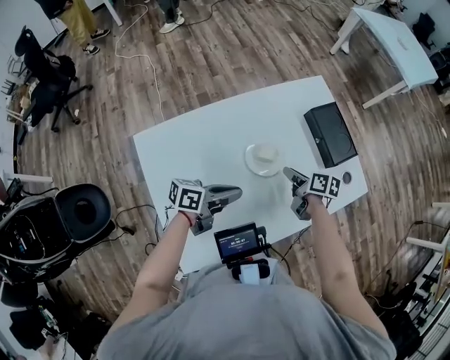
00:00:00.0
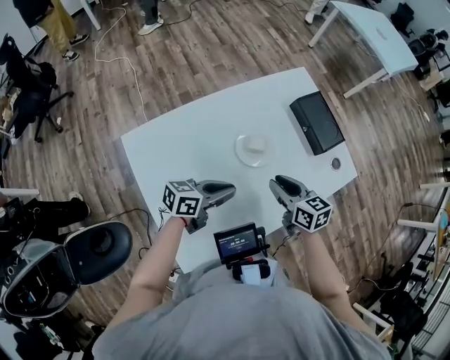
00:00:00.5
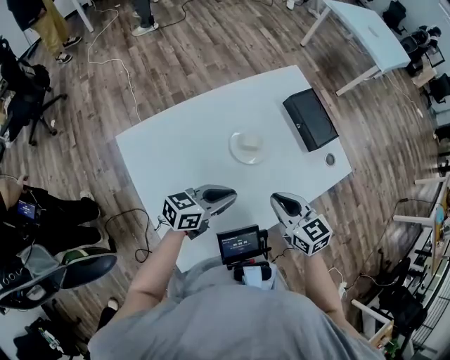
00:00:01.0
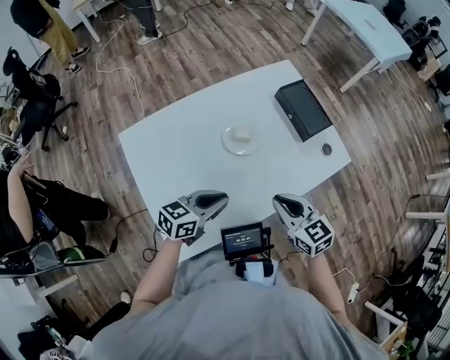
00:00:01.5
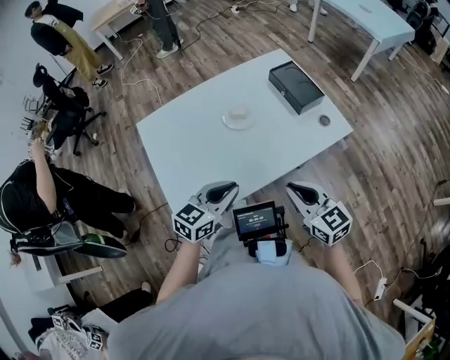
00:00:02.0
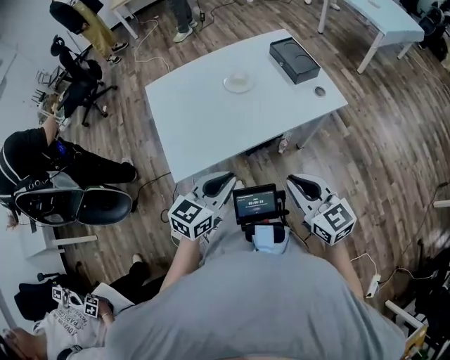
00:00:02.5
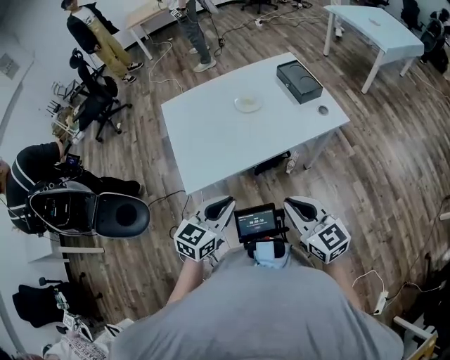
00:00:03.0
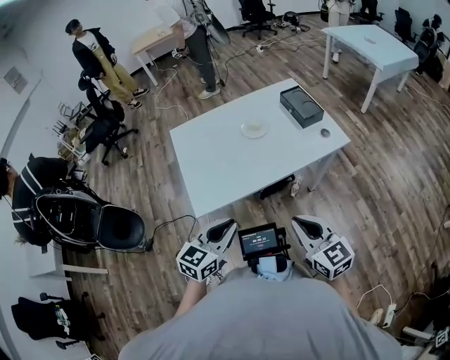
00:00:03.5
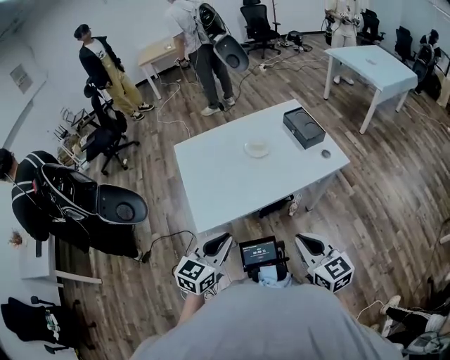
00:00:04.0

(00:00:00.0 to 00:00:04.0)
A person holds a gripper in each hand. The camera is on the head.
00:00:00.0 - 00:00:02.0: The right gripper goes approximately 35 cm backward, upward and to the right, and rotates around the line of its fingers by about 50 degrees, counterclockwise from behind, while the left gripper moves backward, to the right and upward, approximately 20 cm, and rotates around the line of its fingers by approximately 40 degrees, clockwise from behind.
00:00:02.0 - 00:00:04.0: Both grippers travel together backward, roughly 20 cm.

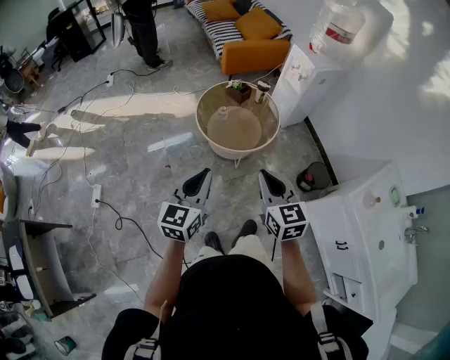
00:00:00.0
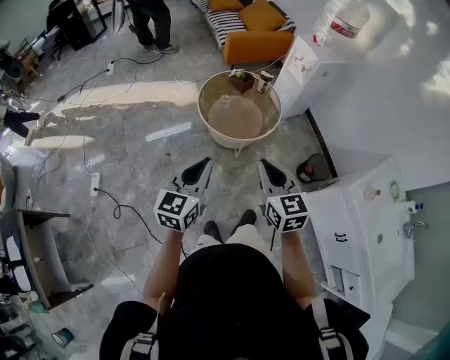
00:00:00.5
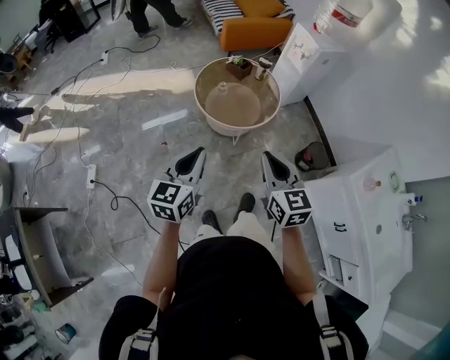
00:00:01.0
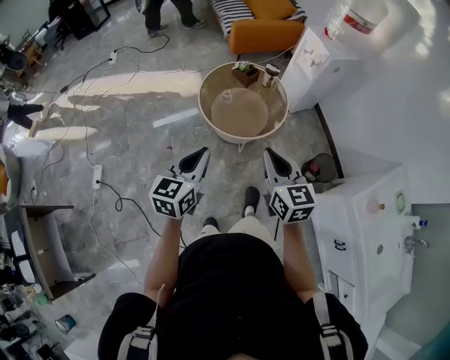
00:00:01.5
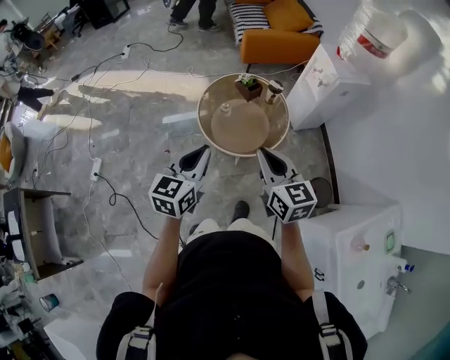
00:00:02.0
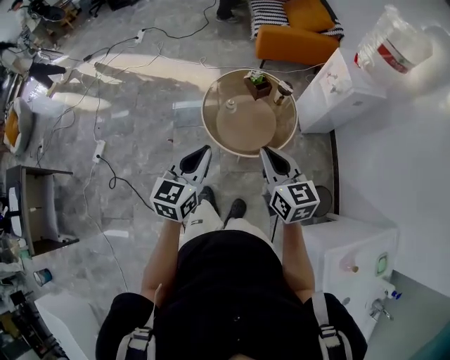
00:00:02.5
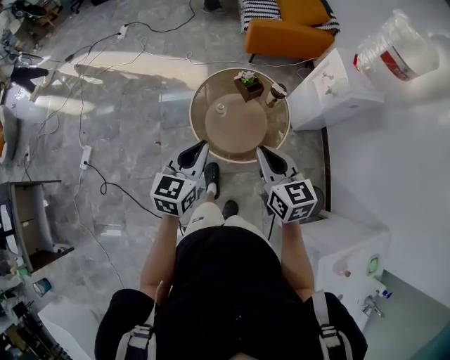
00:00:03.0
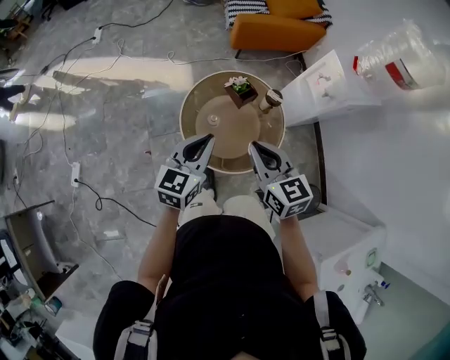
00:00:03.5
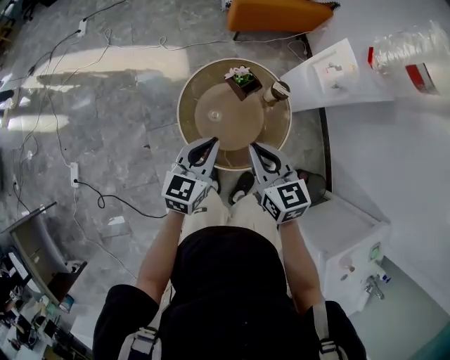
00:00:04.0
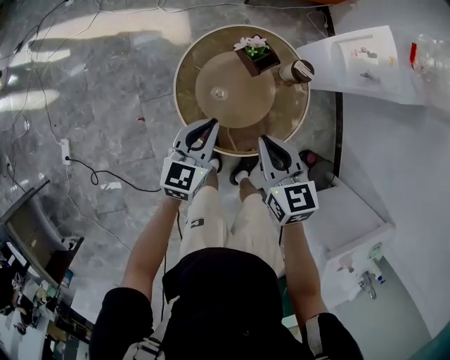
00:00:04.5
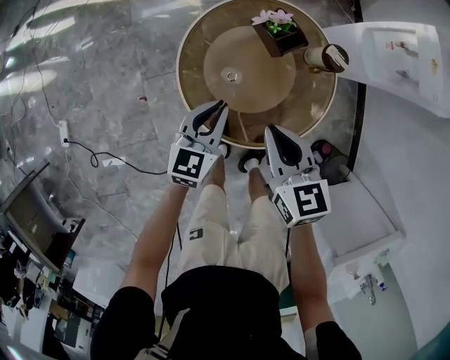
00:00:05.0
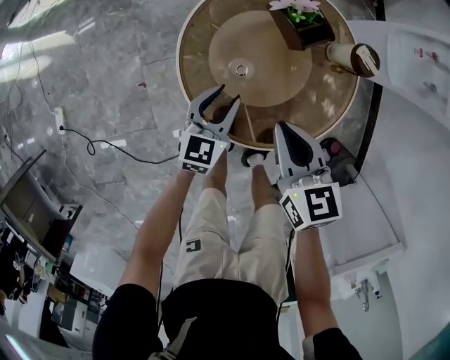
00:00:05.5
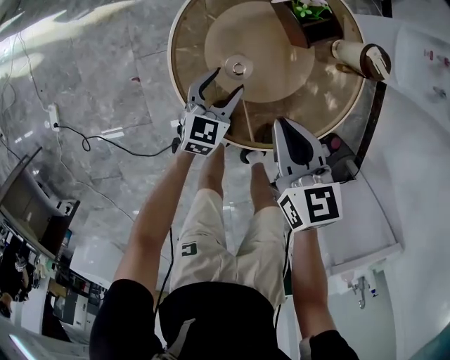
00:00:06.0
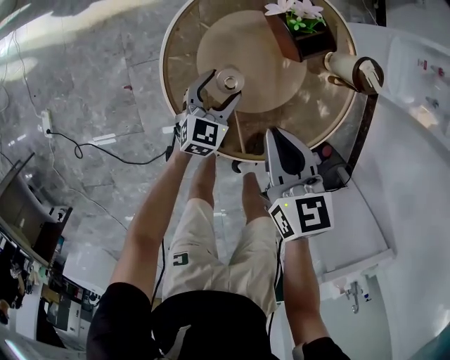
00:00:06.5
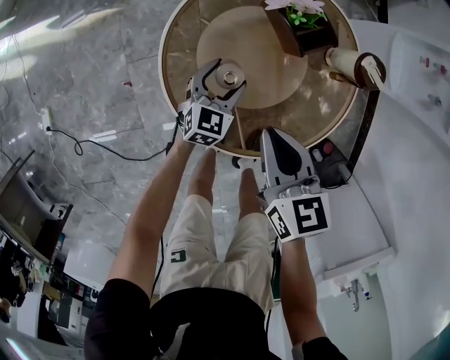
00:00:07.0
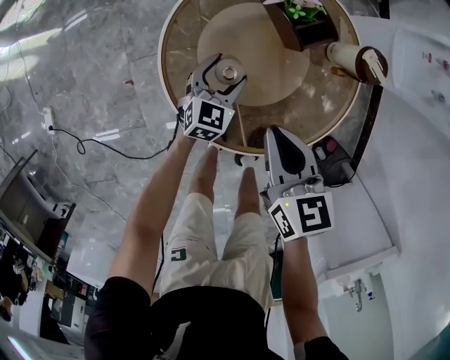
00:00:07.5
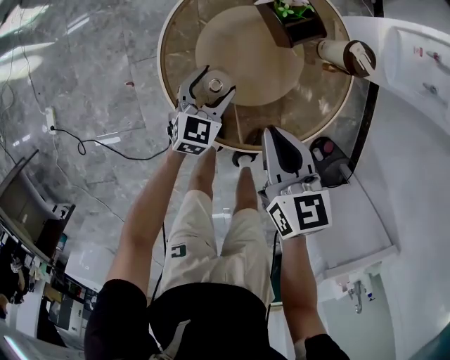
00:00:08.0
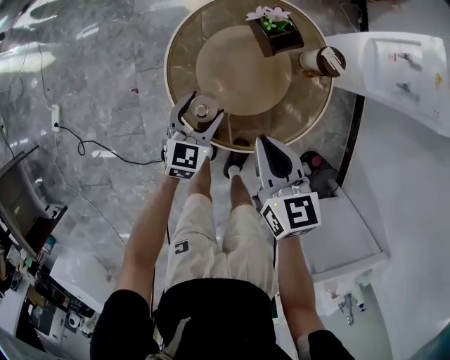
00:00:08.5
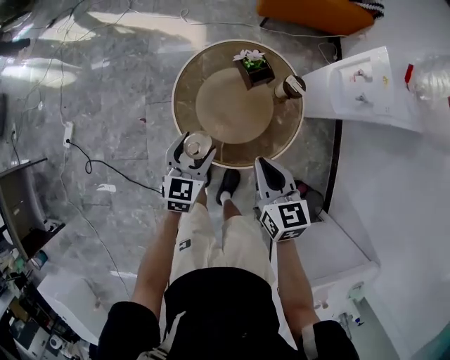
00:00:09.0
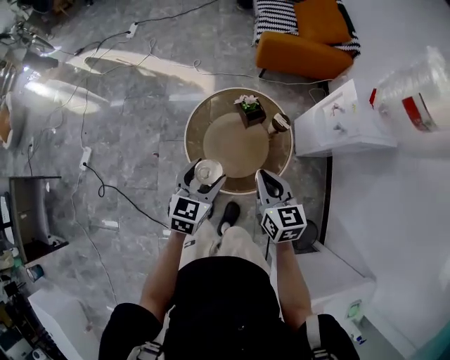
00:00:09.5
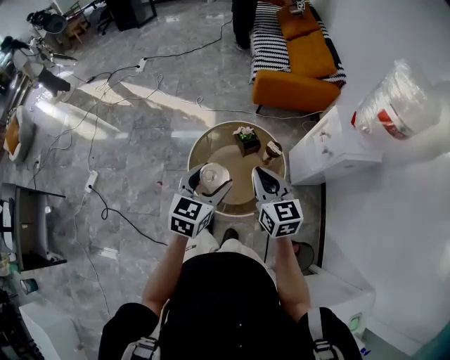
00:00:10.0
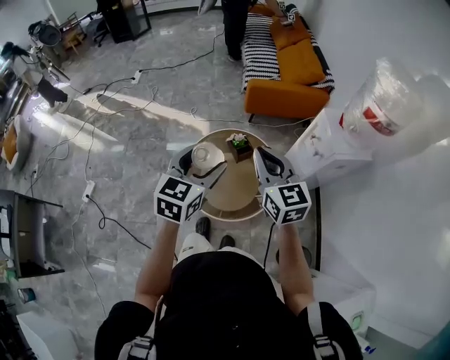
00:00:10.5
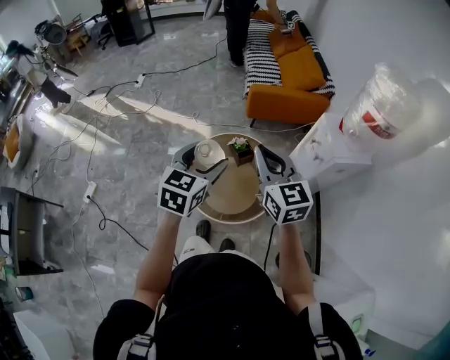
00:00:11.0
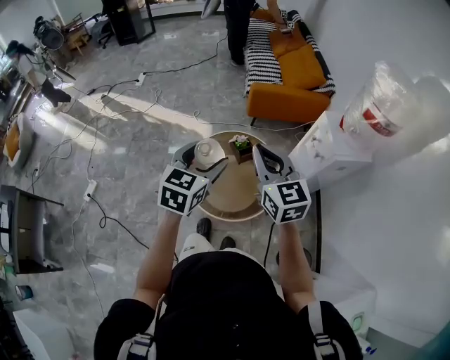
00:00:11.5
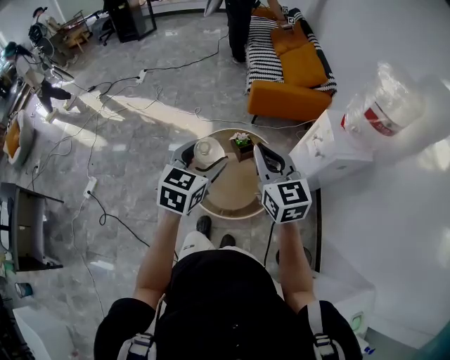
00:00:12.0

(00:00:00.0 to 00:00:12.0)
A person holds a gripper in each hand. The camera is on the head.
00:00:00.0 - 00:00:02.0: The right gripper goes approximately 20 cm forward; the left gripper moves forward and to the right, about 20 cm.
00:00:02.0 - 00:00:04.0: The grippers both shift forward and downward by approximately 35 cm.
00:00:04.0 - 00:00:06.0: Both grippers move downward, some 35 cm. The left gripper opens its fingers.
00:00:06.0 - 00:00:08.0: The grippers move only a little.
00:00:08.0 - 00:00:10.0: The grippers both shift upward by about 50 cm. The right gripper changes its angle by about 30 degrees.
00:00:10.0 - 00:00:12.0: The two grippers go roughly 10 cm upward.

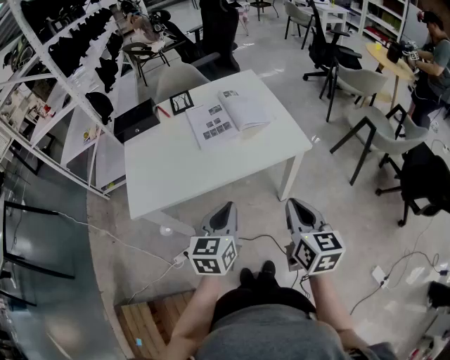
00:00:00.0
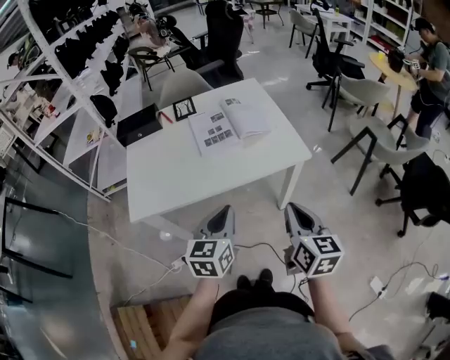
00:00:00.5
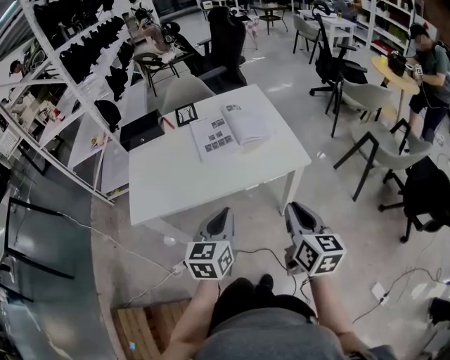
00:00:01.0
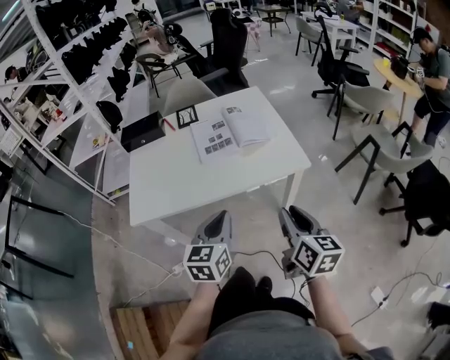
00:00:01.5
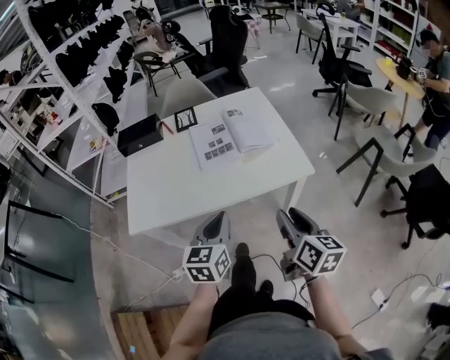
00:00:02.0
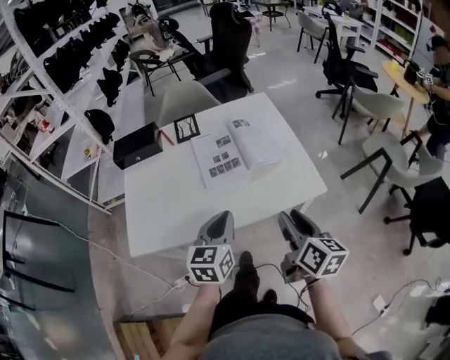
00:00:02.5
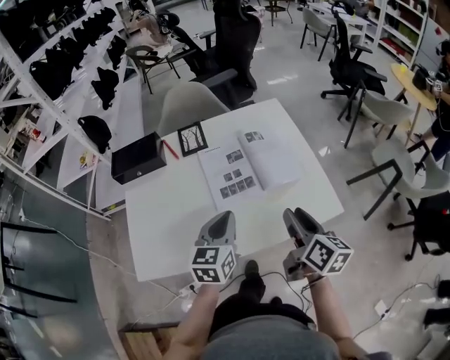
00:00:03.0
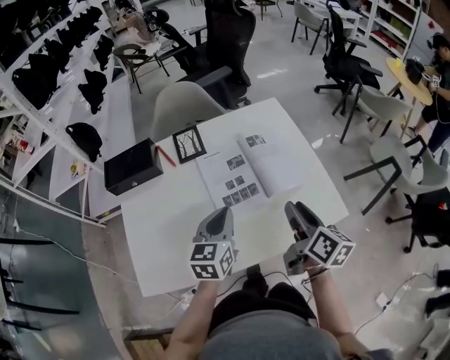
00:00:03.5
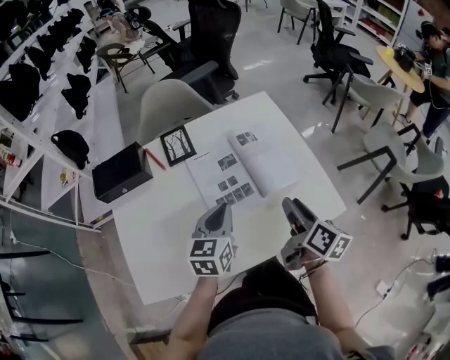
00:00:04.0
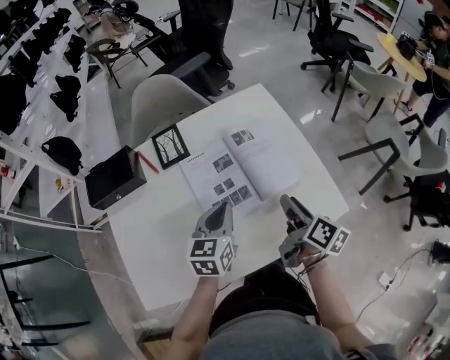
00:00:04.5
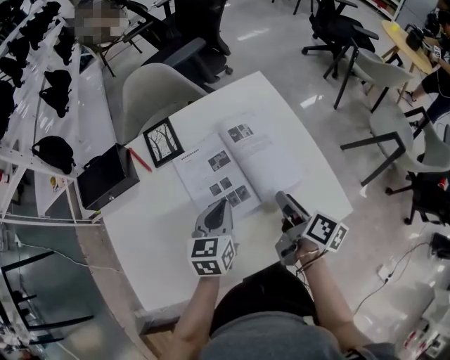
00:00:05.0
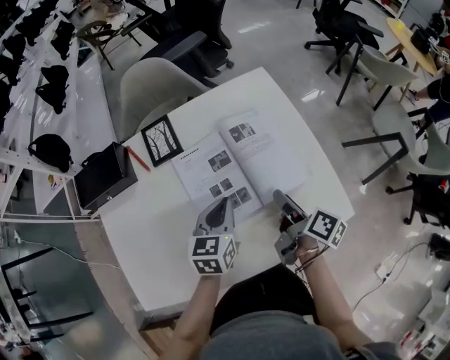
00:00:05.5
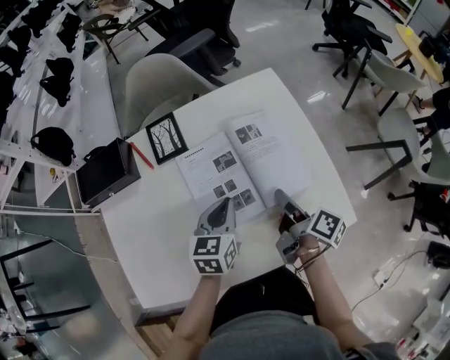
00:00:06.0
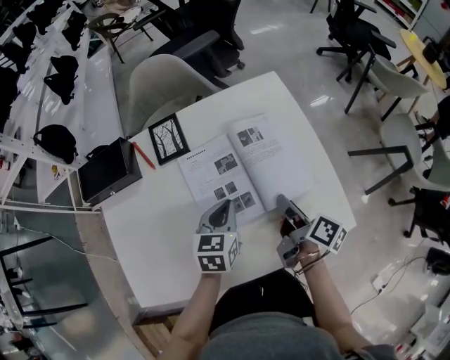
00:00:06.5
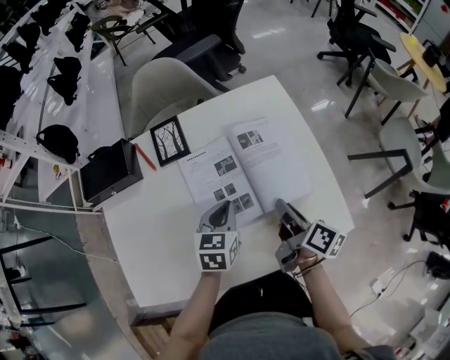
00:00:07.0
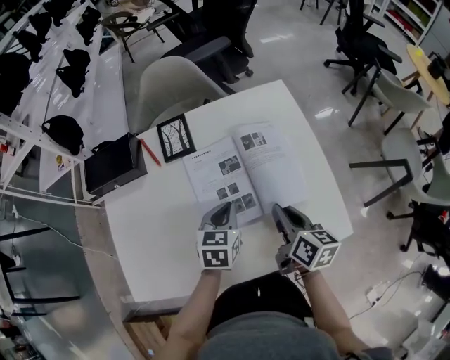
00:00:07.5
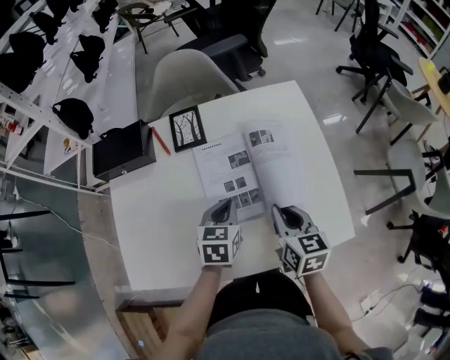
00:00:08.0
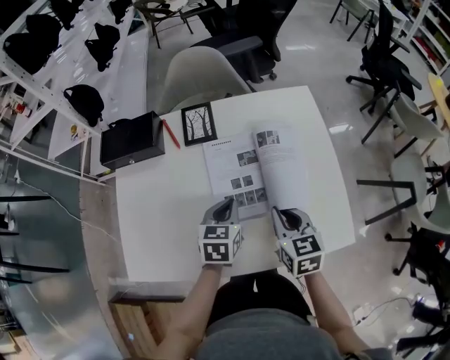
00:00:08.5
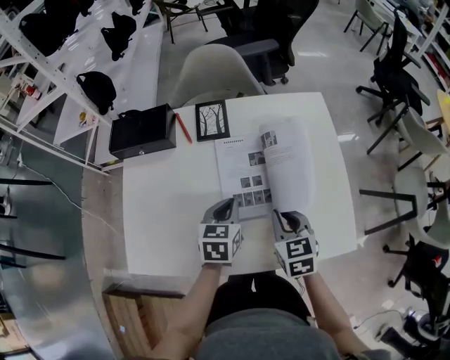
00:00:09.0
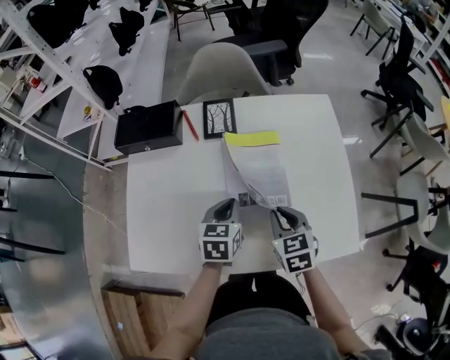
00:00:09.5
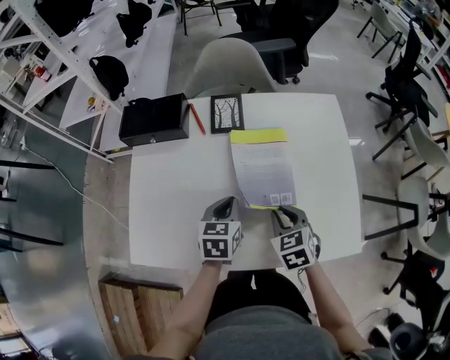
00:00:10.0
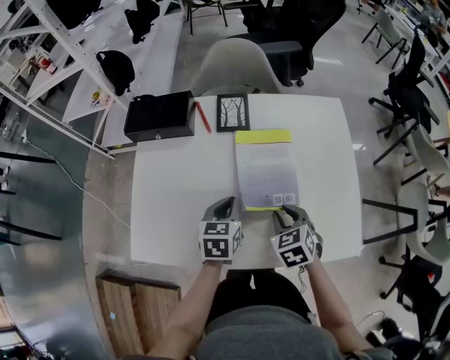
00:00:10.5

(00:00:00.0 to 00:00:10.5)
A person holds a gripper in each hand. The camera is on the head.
00:00:00.0 - 00:00:02.0: The right gripper is displaced forward by about 5 cm, and opens its fingers.
00:00:02.0 - 00:00:04.0: Both grippers move forward, about 25 cm. The right gripper turns by about 20 degrees.
00:00:04.0 - 00:00:06.5: Both grippers travel together downward and forward, approximately 10 cm. The right gripper changes its angle by approximately 20 degrees.
00:00:06.5 - 00:00:08.5: The right gripper is displaced to the left by roughly 5 cm, rolls counterclockwise, seen from behind, by about 70 degrees, and closes.
00:00:08.5 - 00:00:10.5: The two grippers go some 5 cm to the left. The right gripper turns by some 30 degrees.
